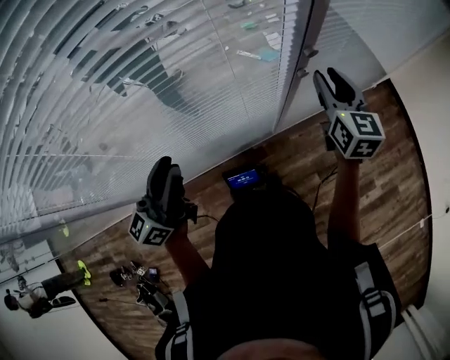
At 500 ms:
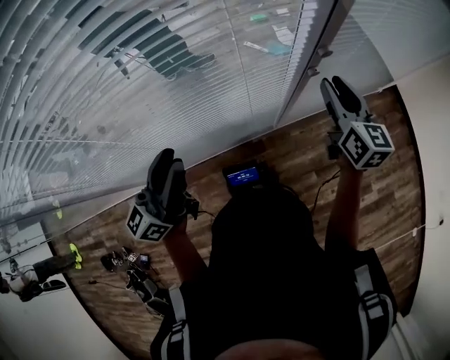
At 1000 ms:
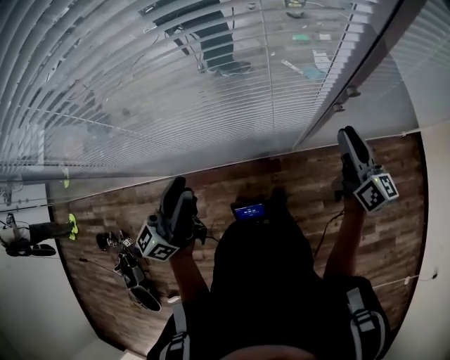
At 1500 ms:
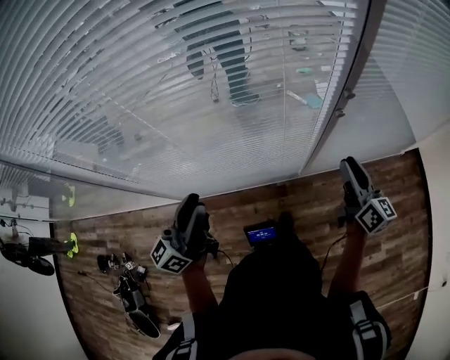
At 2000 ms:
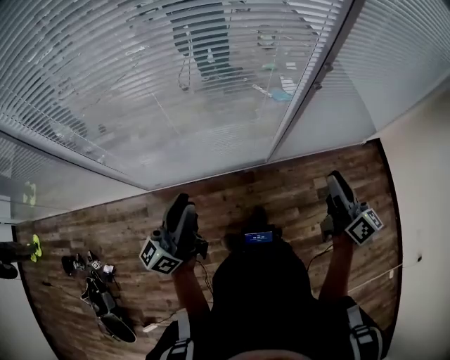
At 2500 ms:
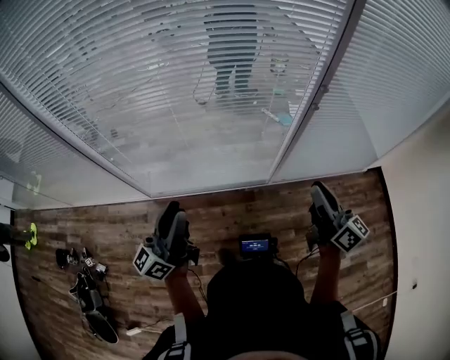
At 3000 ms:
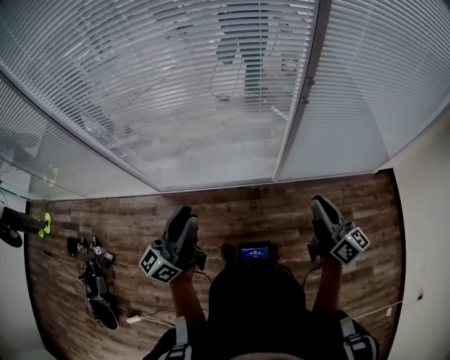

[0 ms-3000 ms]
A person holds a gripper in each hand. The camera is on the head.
0 ms to 1500 ms: The left gripper heads backward, covering about 10 cm. The right gripper moves backward and downward, approximately 10 cm, and turns by some 40 degrees.
1500 ms to 3000 ms: The right gripper moves backward, about 20 cm. The left gripper heads backward and to the right, covering about 20 cm.

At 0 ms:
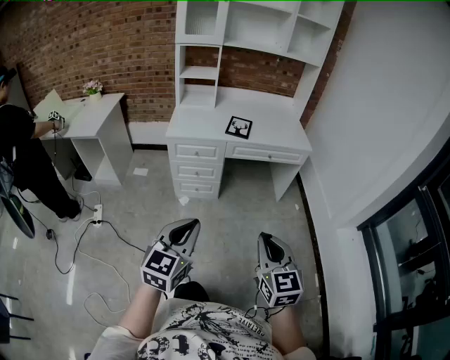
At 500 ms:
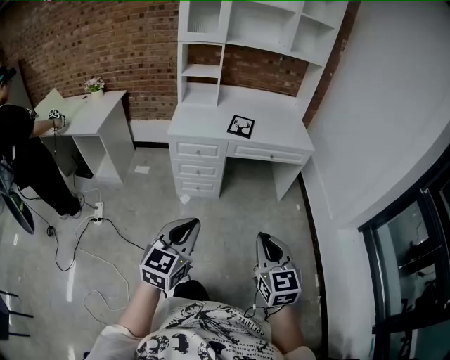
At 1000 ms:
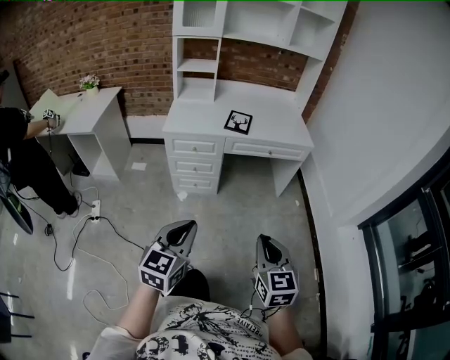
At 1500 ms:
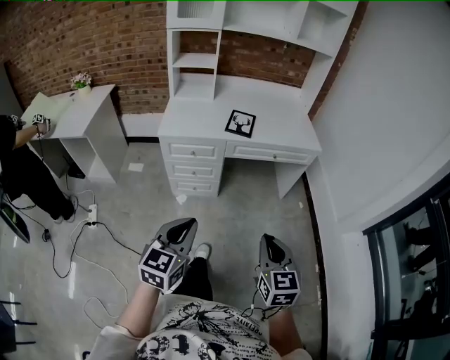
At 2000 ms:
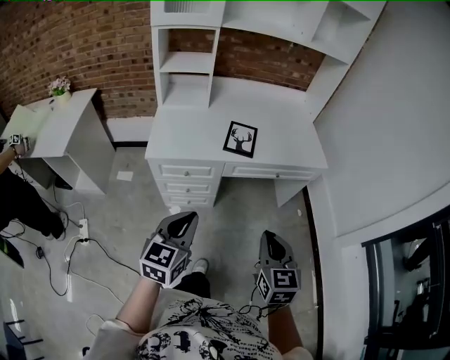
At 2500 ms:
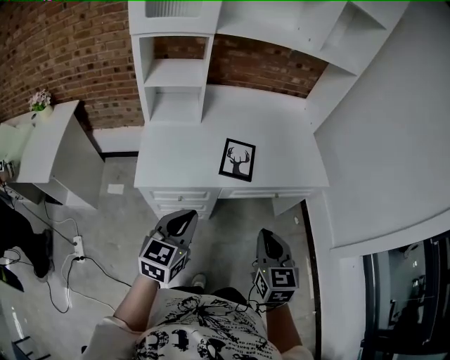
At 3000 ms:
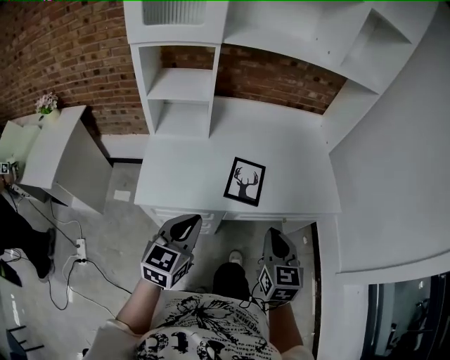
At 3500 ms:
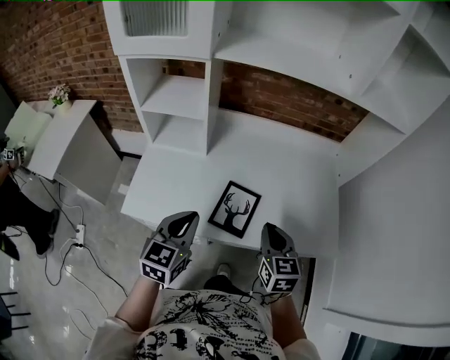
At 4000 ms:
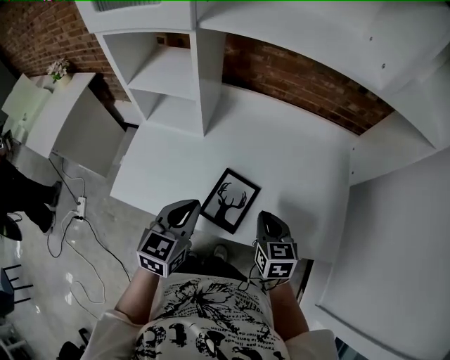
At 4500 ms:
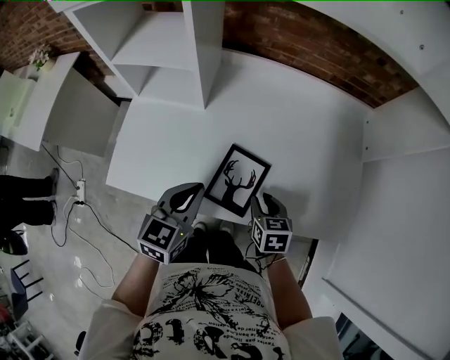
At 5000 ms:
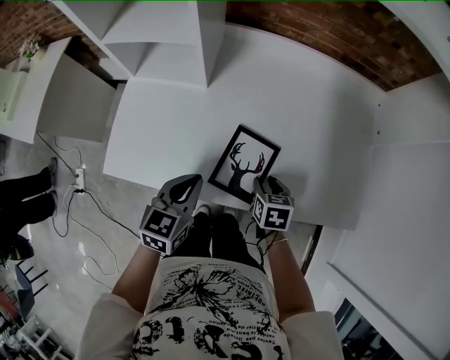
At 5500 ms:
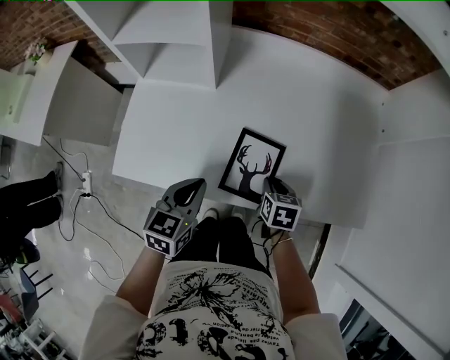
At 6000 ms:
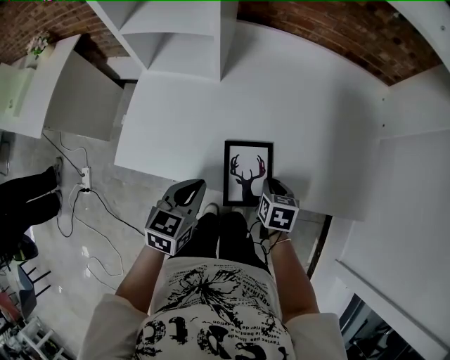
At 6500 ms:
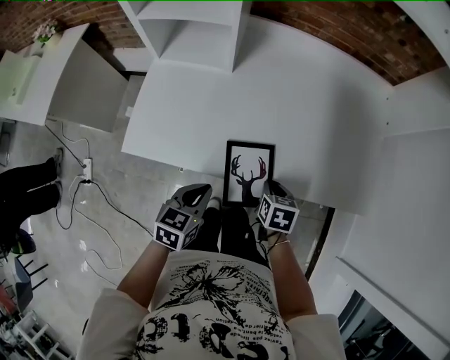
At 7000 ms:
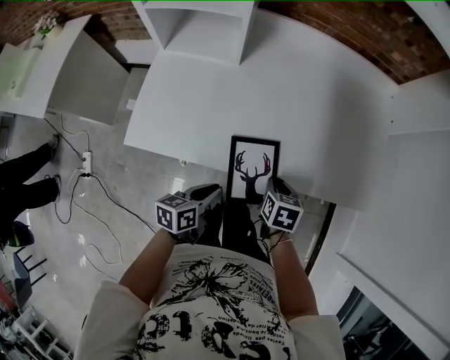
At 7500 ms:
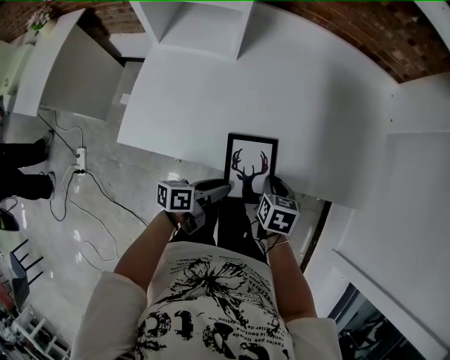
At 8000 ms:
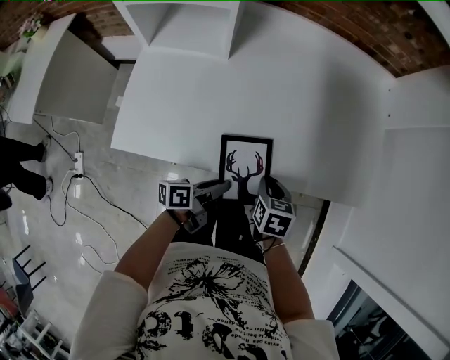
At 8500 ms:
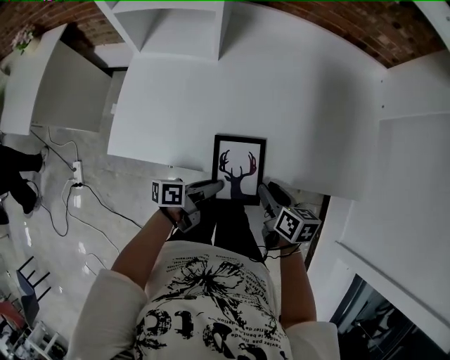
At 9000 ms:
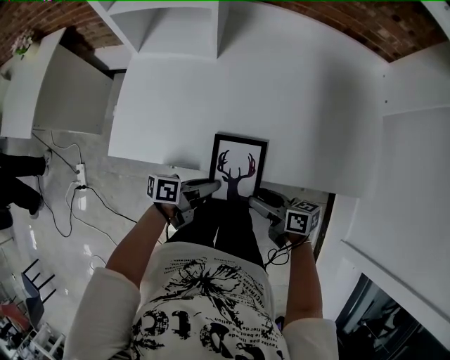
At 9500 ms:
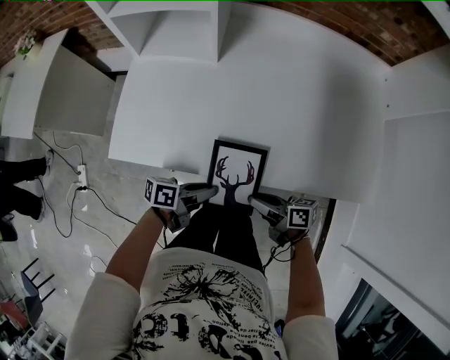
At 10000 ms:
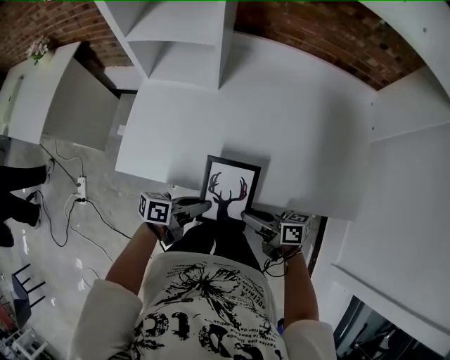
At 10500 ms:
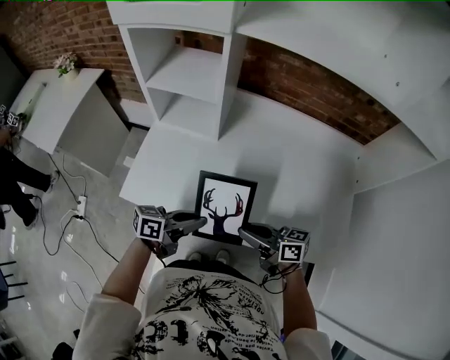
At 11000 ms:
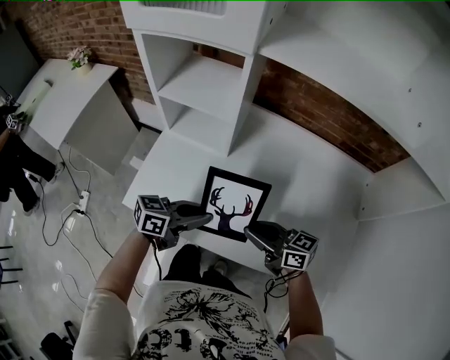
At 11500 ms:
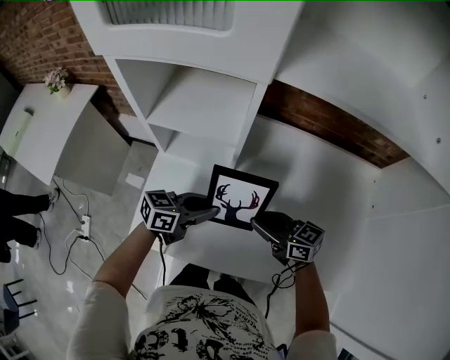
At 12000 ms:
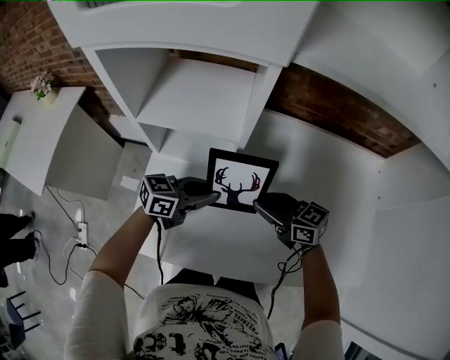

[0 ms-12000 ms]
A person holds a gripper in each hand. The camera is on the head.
0 ms to 2000 ms: Both grippers move forward, roughly 35 cm.
2000 ms to 4000 ms: The two grippers travel together, forward, roughly 50 cm. The right gripper turns by about 30 degrees.
4000 ms to 6000 ms: The left gripper heads downward, backward and to the left, covering roughly 15 cm, while the right gripper is displaced downward by approximately 15 cm, changes its angle by about 30 degrees, and opens, then closes again.
6000 ms to 8000 ms: The left gripper moves downward and to the right, some 15 cm, rolls counterclockwise, seen from behind, by some 50 degrees, and opens, then closes again. The right gripper is displaced backward by approximately 5 cm.
8000 ms to 10000 ms: The left gripper shifts by approximately 5 cm. Meanwhile the right gripper shifts by some 10 cm, angles its fingers upward, by about 40 degrees, and opens, then closes once more.
10000 ms to 12000 ms: The right gripper shifts by some 35 cm, and rotates some 40 degrees. Meanwhile the left gripper ends up roughly 30 cm from where it was, and changes its angle by about 40 degrees.

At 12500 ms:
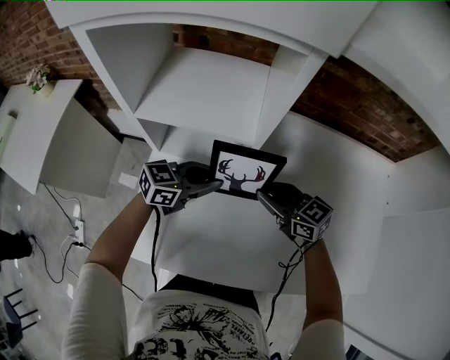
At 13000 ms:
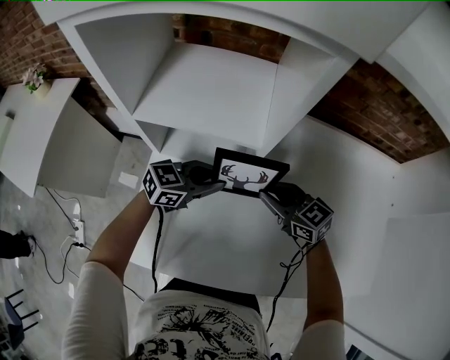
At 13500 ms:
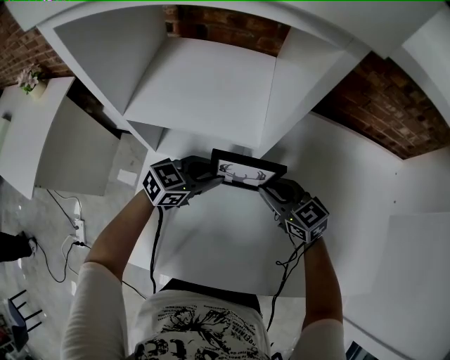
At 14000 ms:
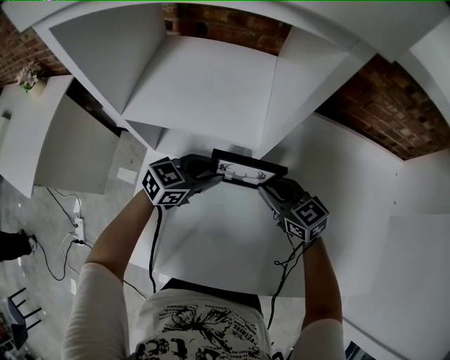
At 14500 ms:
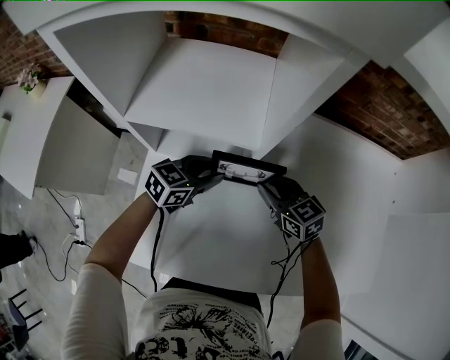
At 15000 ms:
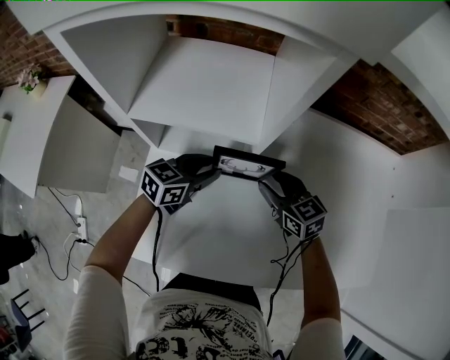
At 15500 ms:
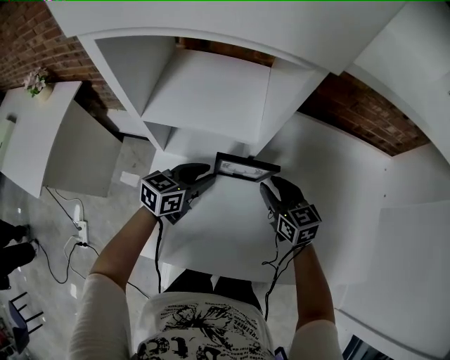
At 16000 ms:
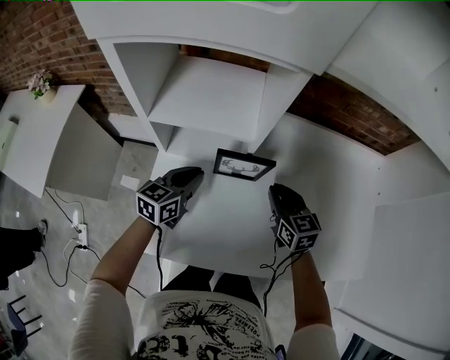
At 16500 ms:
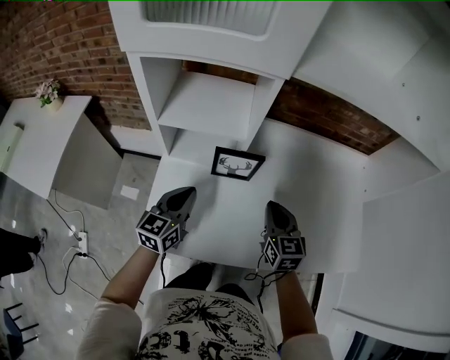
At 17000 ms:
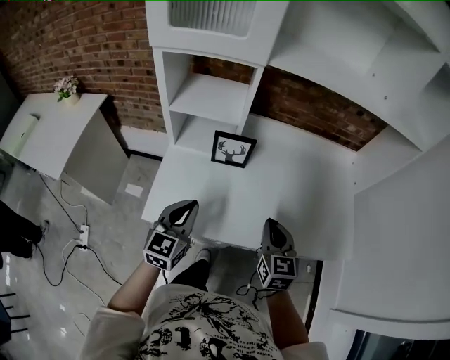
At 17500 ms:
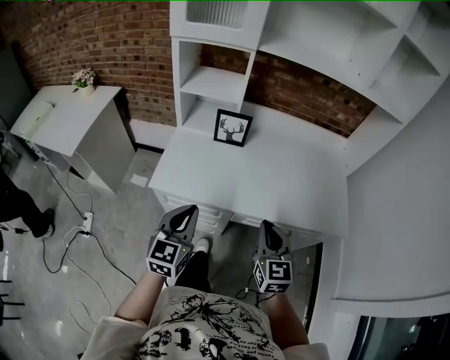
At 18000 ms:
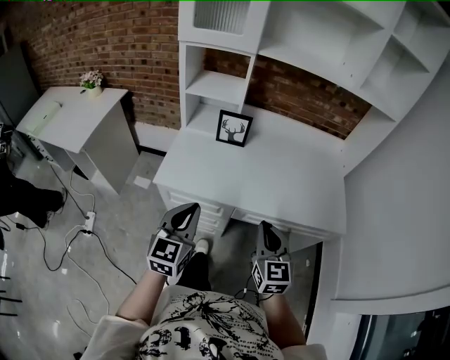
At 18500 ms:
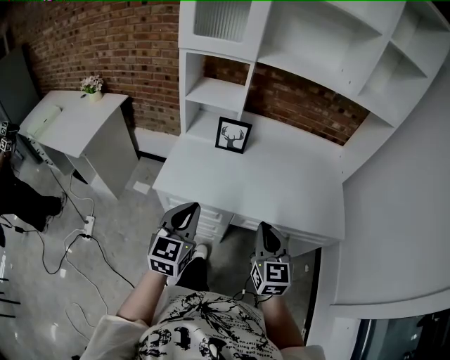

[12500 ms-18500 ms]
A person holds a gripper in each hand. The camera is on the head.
12500 ms to 14500 ms: The left gripper moves downward, roughly 5 cm. Meanwhile the right gripper moves some 5 cm.
14500 ms to 16500 ms: The right gripper travels upward, backward and to the right by some 20 cm, turns by approximately 30 degrees, and closes up. The left gripper is displaced backward, upward and to the left by approximately 20 cm, swivels approximately 30 degrees, and closes.
16500 ms to 18500 ms: Both grippers travel together backward, about 35 cm.

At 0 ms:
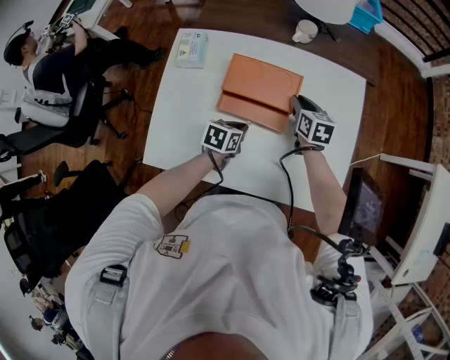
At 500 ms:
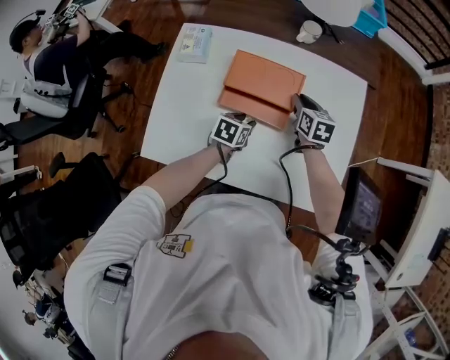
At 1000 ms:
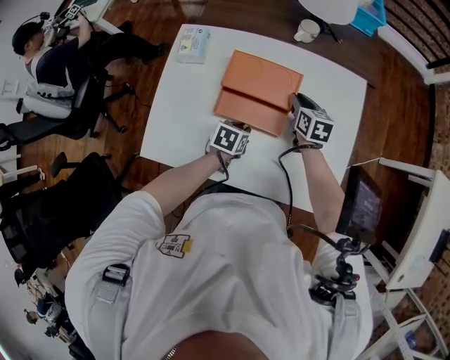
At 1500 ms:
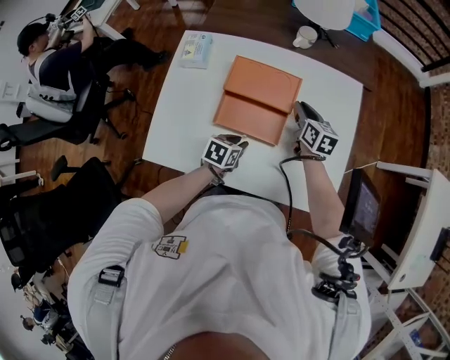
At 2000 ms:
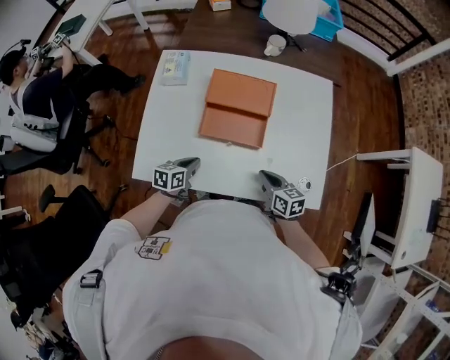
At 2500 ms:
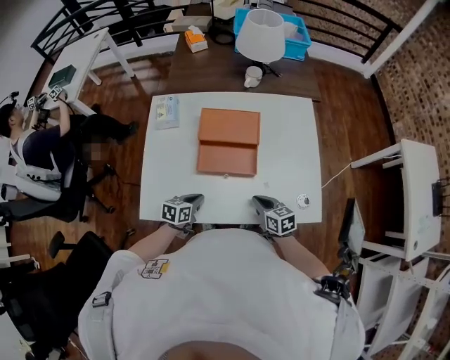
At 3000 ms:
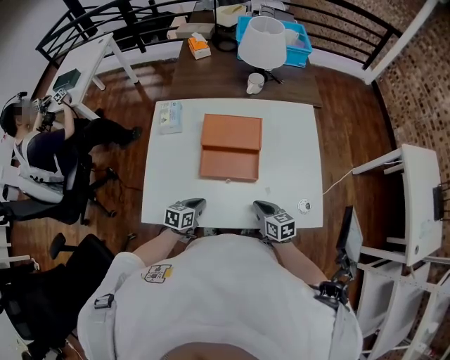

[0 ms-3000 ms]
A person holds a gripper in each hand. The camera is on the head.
0 ms to 1500 ms: The left gripper travels backward by about 5 cm.
1500 ms to 3000 ms: The right gripper shifts approximately 25 cm backward. The left gripper moves to the left and backward, roughly 10 cm, and closes up.

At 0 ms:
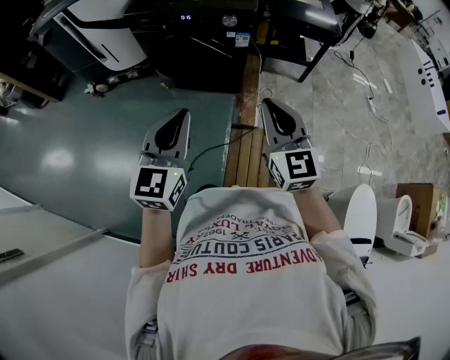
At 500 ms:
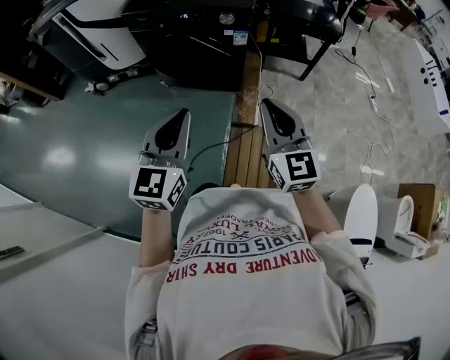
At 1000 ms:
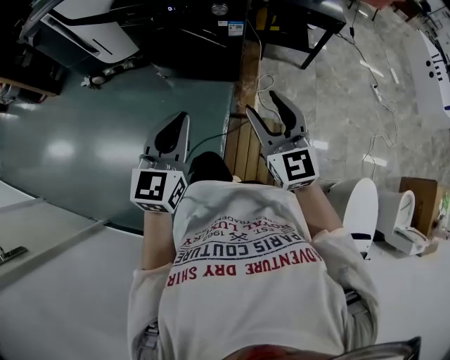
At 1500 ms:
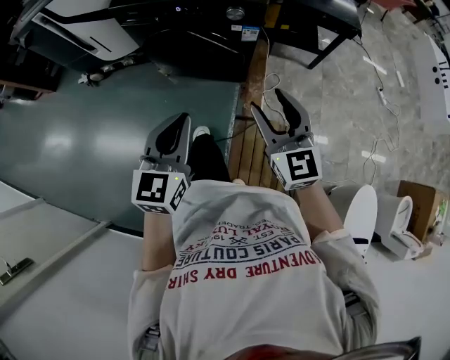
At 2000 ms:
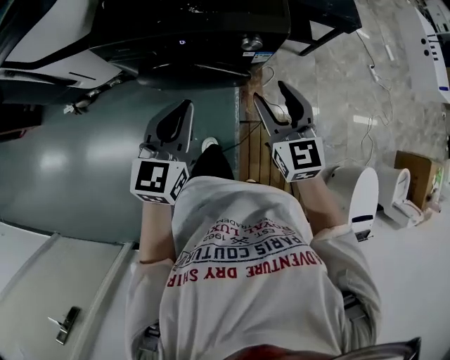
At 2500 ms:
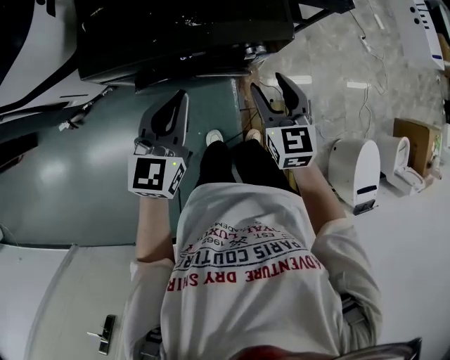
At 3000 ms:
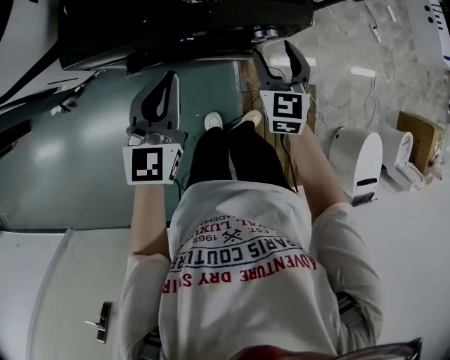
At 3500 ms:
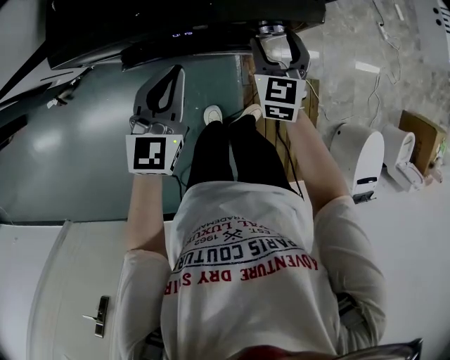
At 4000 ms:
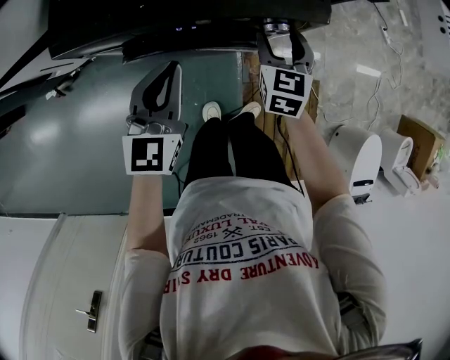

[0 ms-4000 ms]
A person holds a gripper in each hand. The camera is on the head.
0 ms to 2000 ms: Both grippers move forward, some 30 cm. The right gripper opens up.
2000 ms to 4000 ms: The right gripper is displaced forward and downward by about 20 cm, and swivels approximately 20 degrees, while the left gripper is displaced forward and downward by approximately 15 cm.
